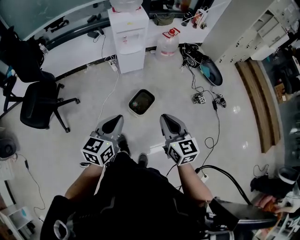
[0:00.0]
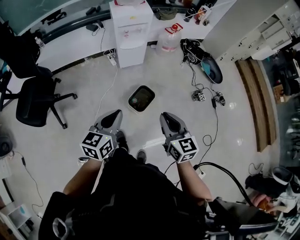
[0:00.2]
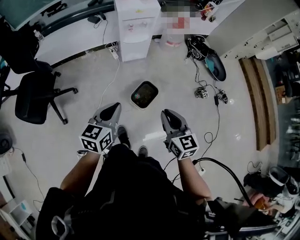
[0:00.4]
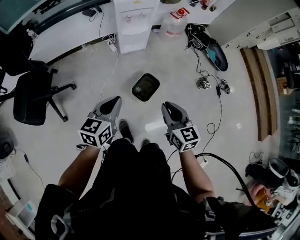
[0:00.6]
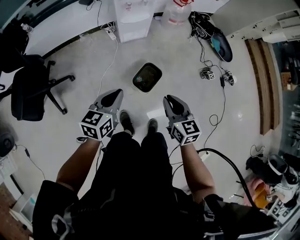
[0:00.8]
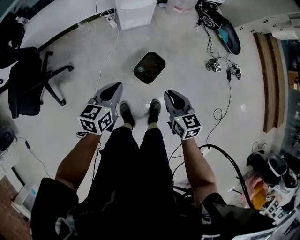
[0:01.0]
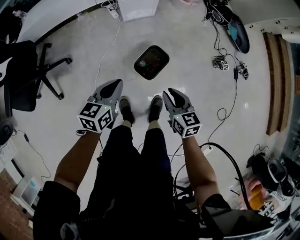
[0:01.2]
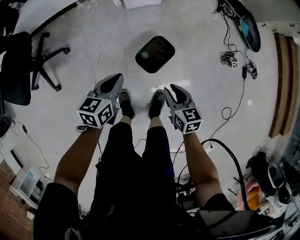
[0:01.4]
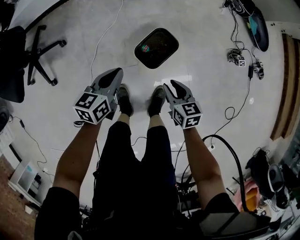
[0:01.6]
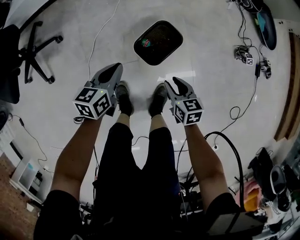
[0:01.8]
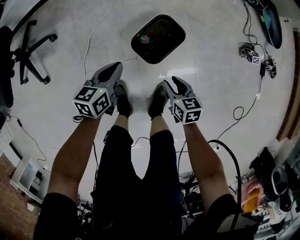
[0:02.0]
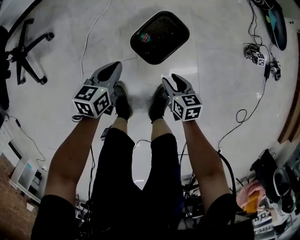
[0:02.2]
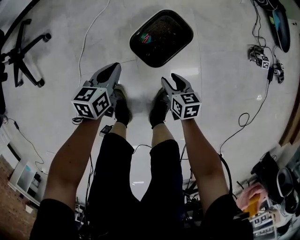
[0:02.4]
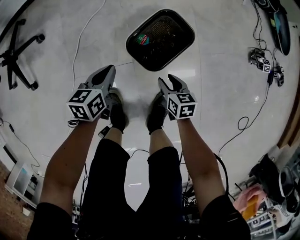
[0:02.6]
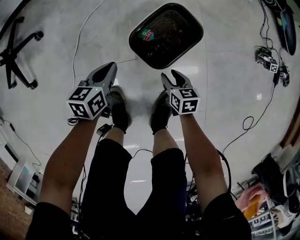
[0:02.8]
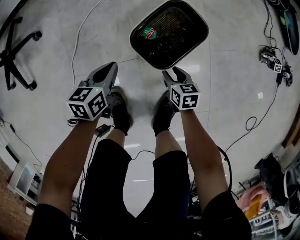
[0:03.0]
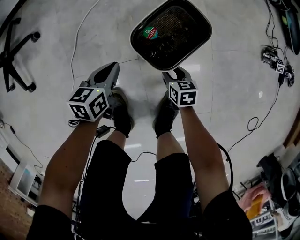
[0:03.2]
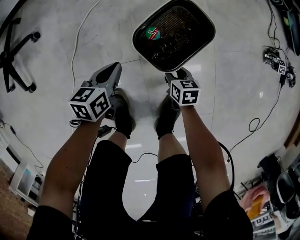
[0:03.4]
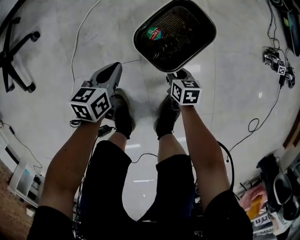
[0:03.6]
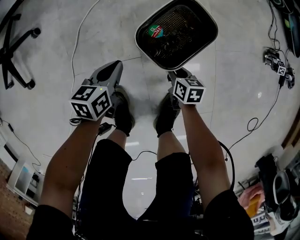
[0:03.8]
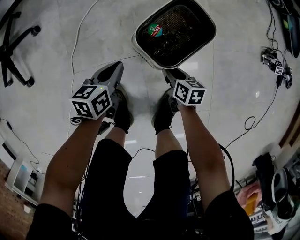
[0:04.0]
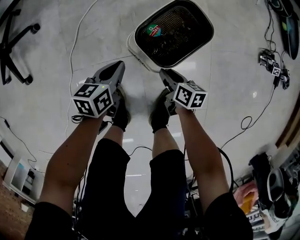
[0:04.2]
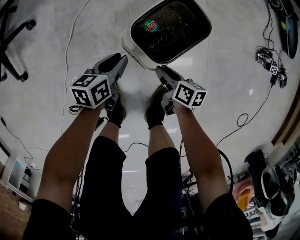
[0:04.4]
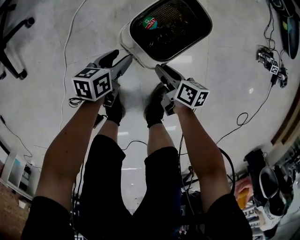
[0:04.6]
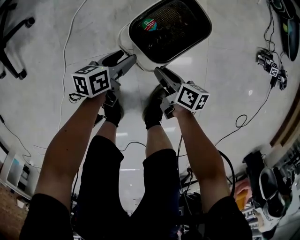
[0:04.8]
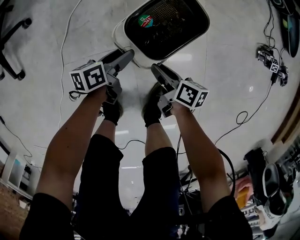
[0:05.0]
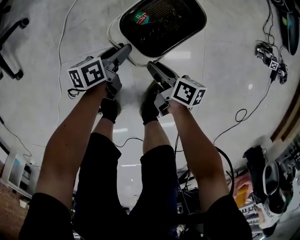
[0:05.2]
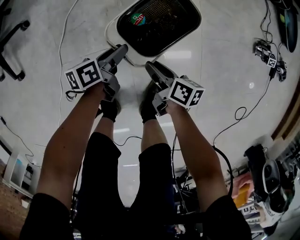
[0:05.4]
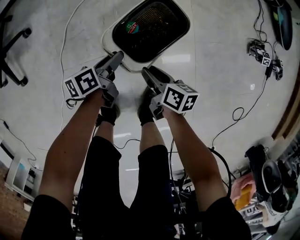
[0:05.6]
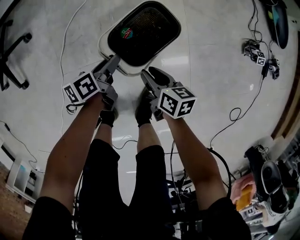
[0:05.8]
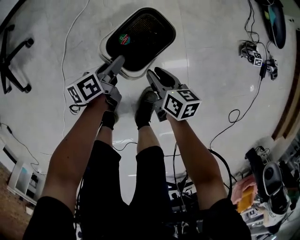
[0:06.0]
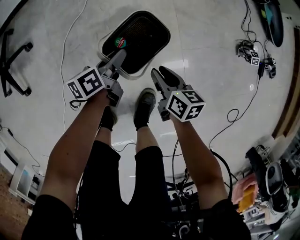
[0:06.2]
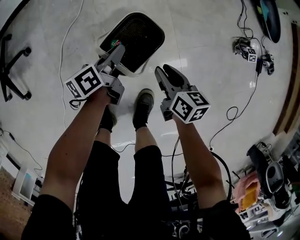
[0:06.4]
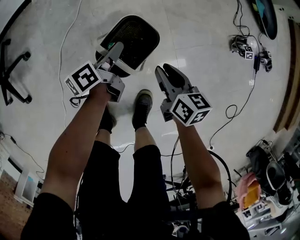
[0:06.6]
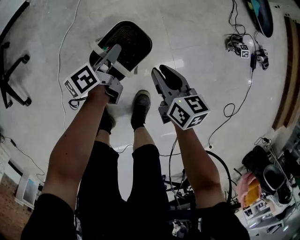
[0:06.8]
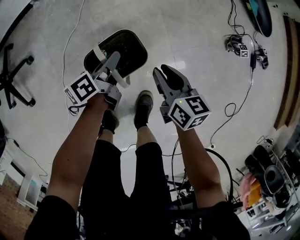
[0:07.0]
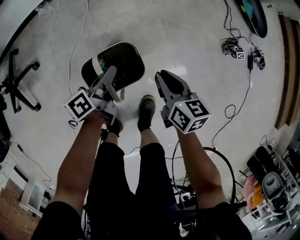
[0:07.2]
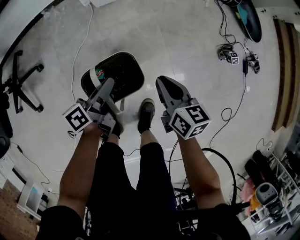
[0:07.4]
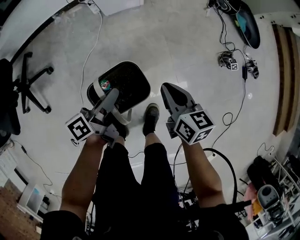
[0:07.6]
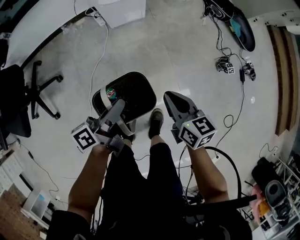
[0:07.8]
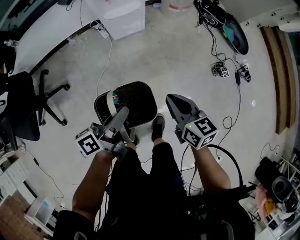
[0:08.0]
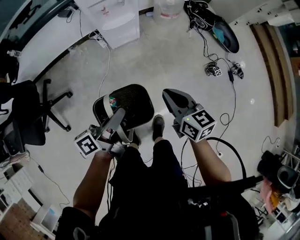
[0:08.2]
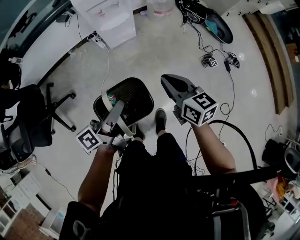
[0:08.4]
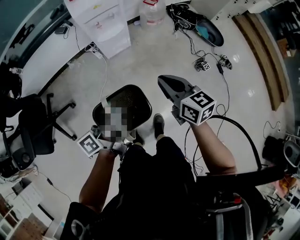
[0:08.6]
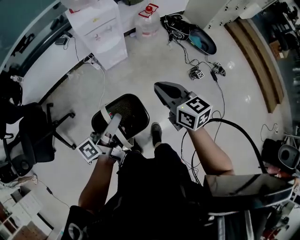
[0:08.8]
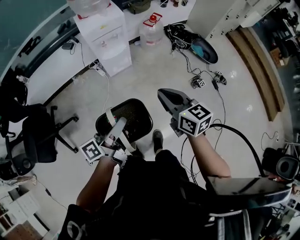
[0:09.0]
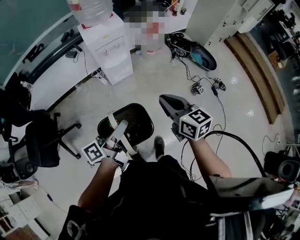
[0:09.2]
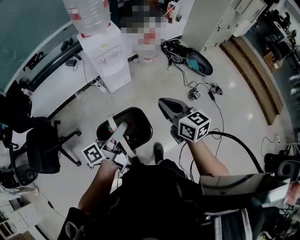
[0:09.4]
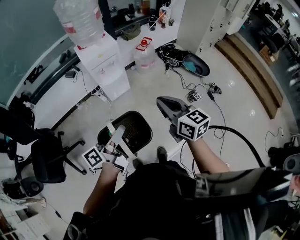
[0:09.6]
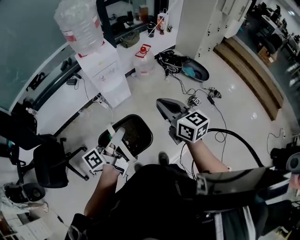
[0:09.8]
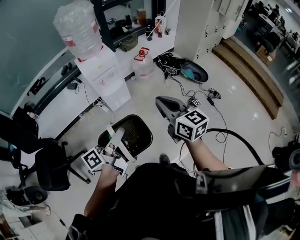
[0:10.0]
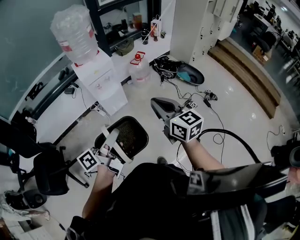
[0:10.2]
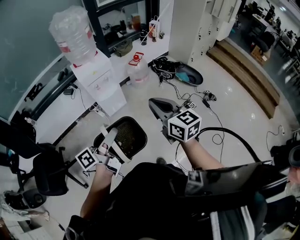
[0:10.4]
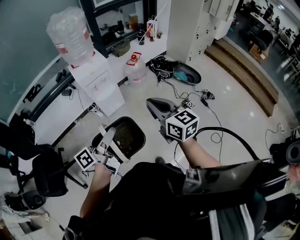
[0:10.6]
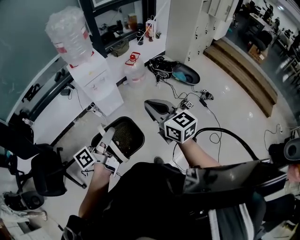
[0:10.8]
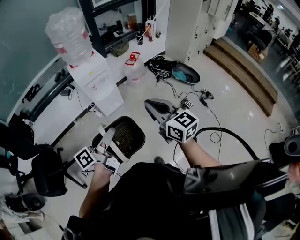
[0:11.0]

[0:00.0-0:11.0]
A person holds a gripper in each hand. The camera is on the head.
0:00.0 to 0:01.6: The left gripper goes approximately 40 cm downward and forward, and rotates about 20 degrees, while the right gripper heads downward, covering approximately 50 cm, and turns by some 30 degrees.
0:01.6 to 0:03.2: The grippers both shift downward by roughly 40 cm.
0:03.2 to 0:04.8: The right gripper is displaced upward by some 10 cm, and changes its angle by roughly 40 degrees. The left gripper changes place by some 5 cm, swivels about 20 degrees, and opens.
0:04.8 to 0:06.2: The left gripper goes approximately 15 cm upward, forward and to the right, and closes up; the right gripper travels upward, to the right and forward by some 15 cm.
0:06.2 to 0:07.8: The two grippers go about 35 cm upward. The right gripper closes its fingers, while the left gripper changes its angle by some 30 degrees, and closes its fingers.
0:07.8 to 0:09.4: The grippers both shift upward by about 35 cm. The right gripper turns by some 20 degrees.
0:09.4 to 0:11.0: The right gripper goes about 10 cm upward; the left gripper changes place by about 5 cm.

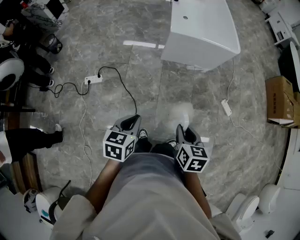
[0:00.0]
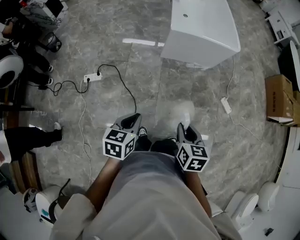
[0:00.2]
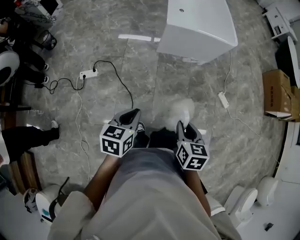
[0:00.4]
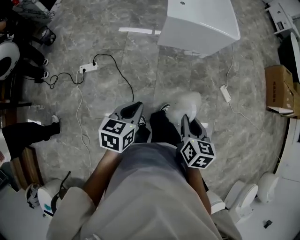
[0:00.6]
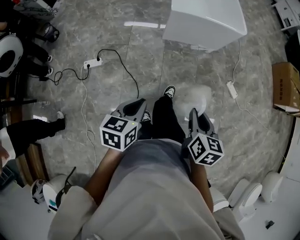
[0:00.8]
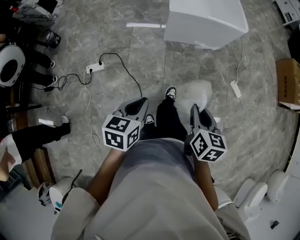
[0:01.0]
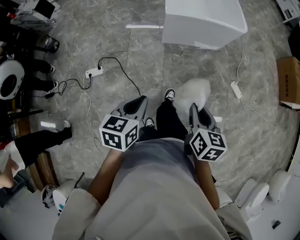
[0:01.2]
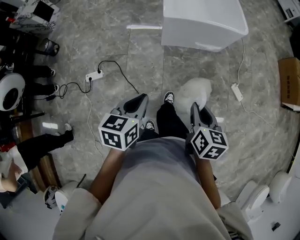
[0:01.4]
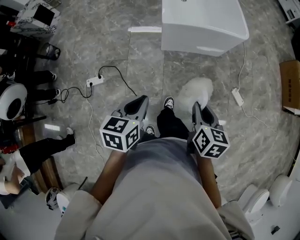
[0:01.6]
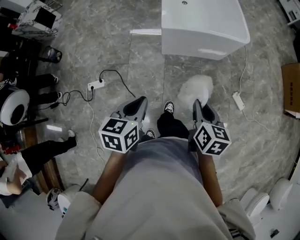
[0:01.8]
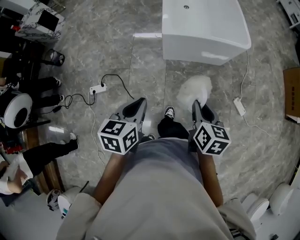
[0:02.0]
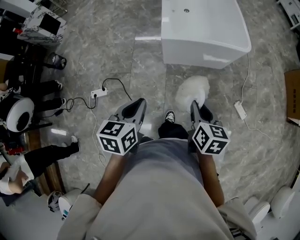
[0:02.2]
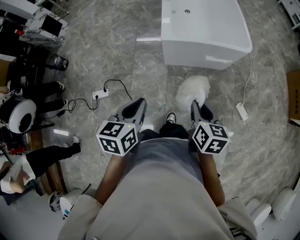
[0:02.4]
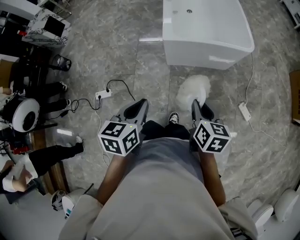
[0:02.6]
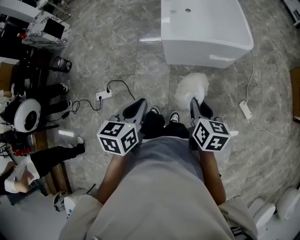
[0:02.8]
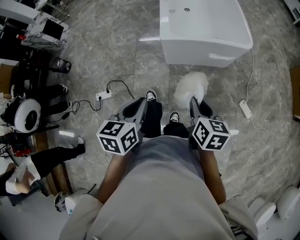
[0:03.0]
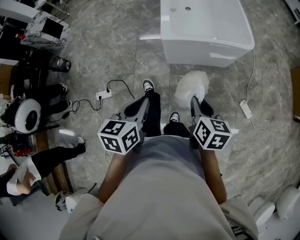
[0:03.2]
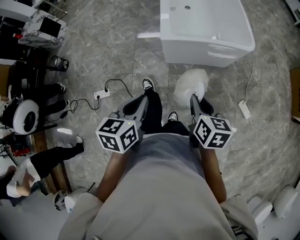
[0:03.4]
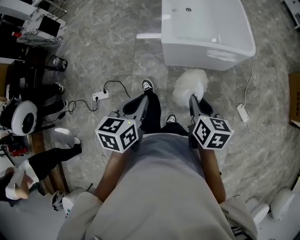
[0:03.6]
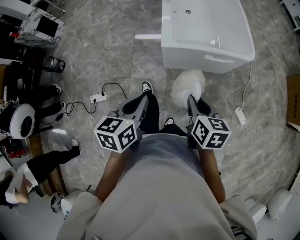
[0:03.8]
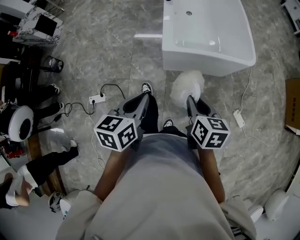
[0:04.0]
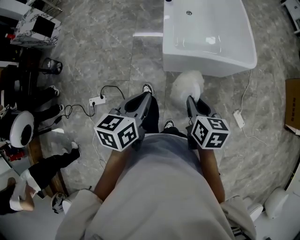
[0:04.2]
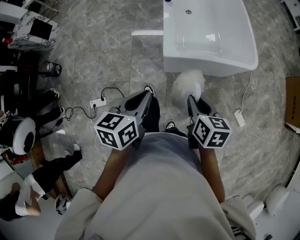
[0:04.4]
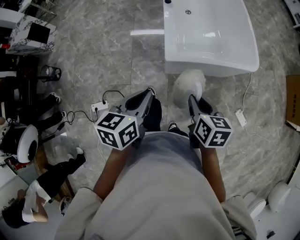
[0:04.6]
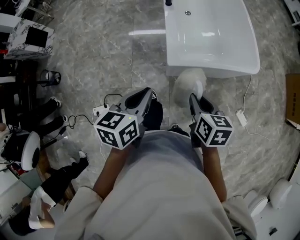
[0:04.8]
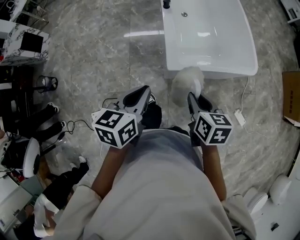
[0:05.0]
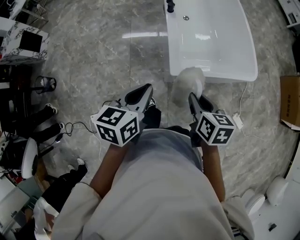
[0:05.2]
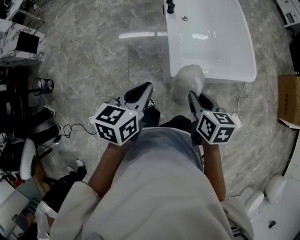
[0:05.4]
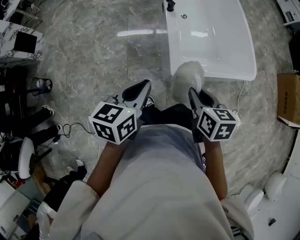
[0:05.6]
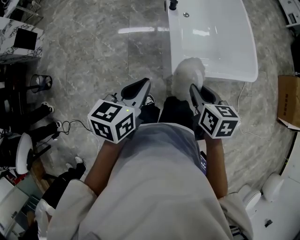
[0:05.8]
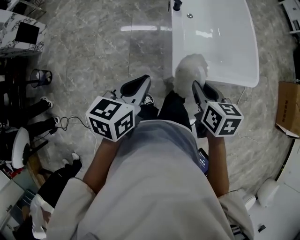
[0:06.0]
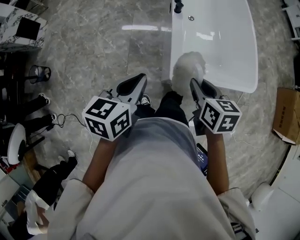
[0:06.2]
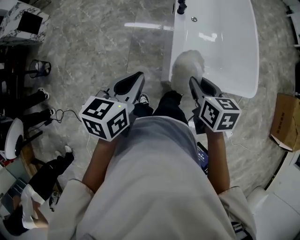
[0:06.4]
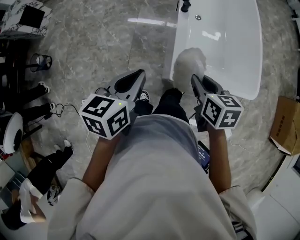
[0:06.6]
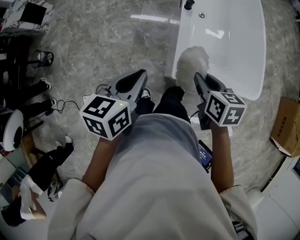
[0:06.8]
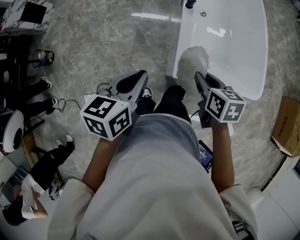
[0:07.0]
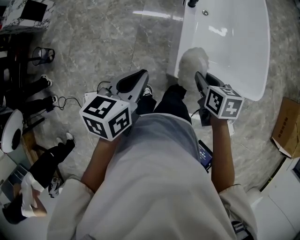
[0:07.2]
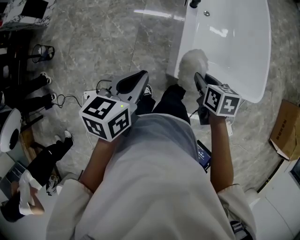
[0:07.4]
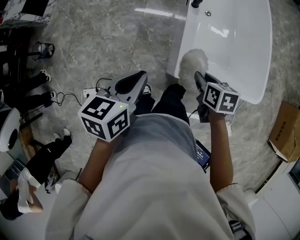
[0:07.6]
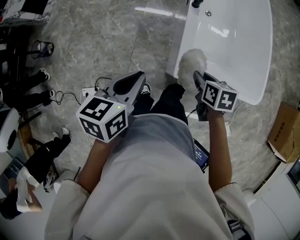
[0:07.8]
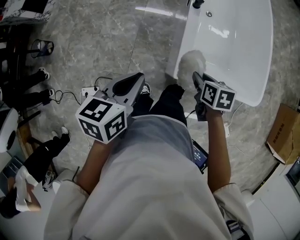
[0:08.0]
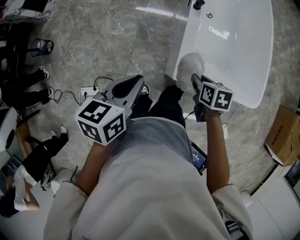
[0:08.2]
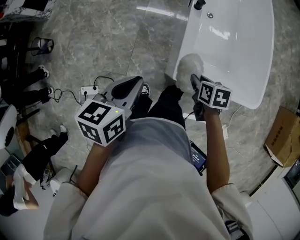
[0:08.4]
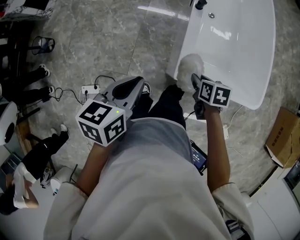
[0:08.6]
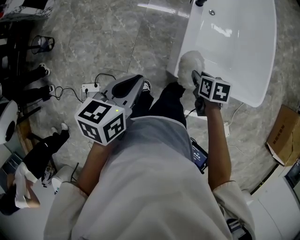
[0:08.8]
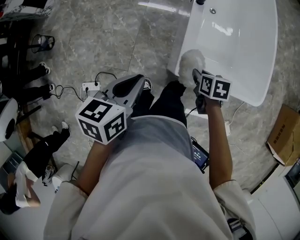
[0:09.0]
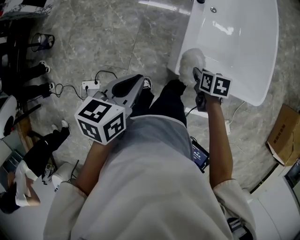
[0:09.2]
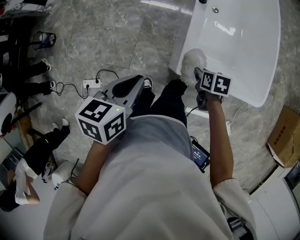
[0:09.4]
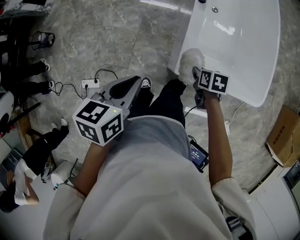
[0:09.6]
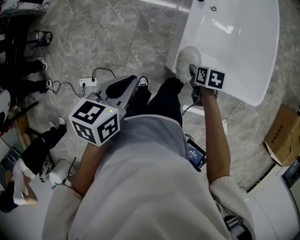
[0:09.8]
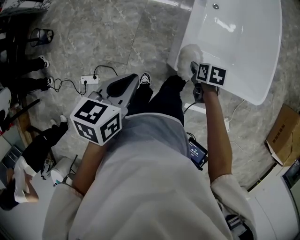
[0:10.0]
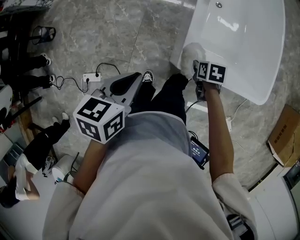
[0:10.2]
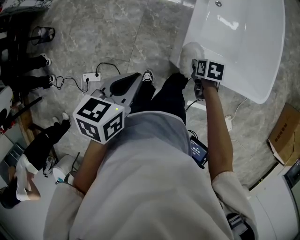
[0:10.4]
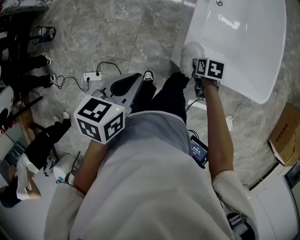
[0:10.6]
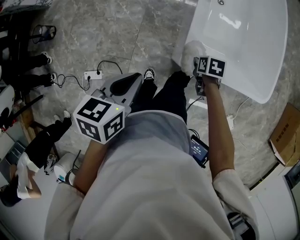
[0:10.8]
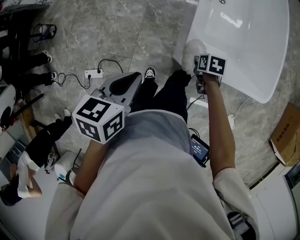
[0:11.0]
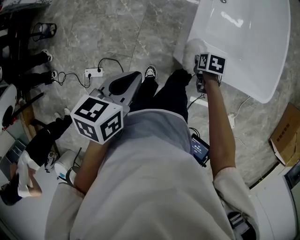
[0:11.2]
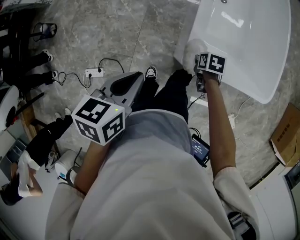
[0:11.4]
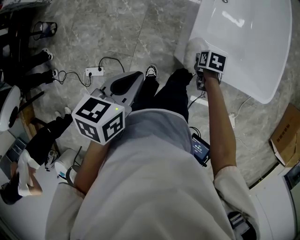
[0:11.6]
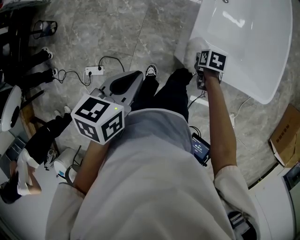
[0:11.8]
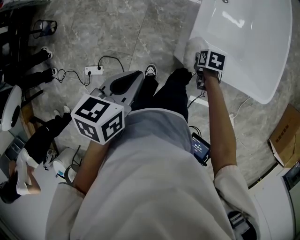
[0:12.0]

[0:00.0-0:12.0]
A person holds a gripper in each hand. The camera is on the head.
0:00.0 to 0:01.6: The grippers both shift forward by some 20 cm.
0:01.6 to 0:03.0: The two grippers go approximately 10 cm forward.
0:03.0 to 0:04.4: The right gripper moves forward and to the left, some 20 cm, while the left gripper moves forward, some 20 cm.
0:04.4 to 0:06.0: The grippers both shift forward and to the left by about 20 cm.
0:06.0 to 0:07.6: The right gripper goes some 15 cm downward and forward.
0:07.6 to 0:09.0: The right gripper moves downward, about 5 cm.
0:09.0 to 0:10.4: The right gripper goes about 10 cm downward.
0:10.4 to 0:12.0: The grippers make only small movements.

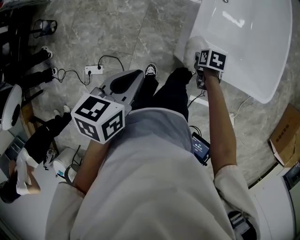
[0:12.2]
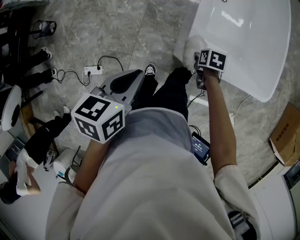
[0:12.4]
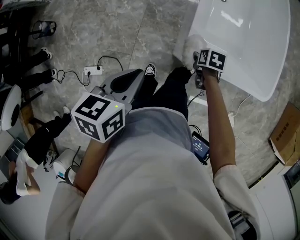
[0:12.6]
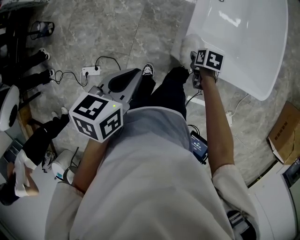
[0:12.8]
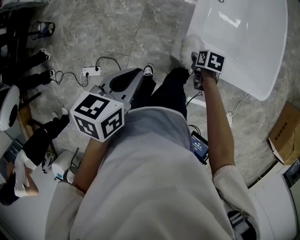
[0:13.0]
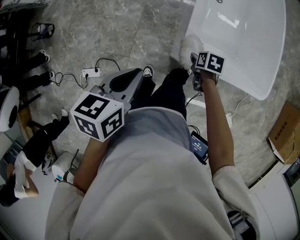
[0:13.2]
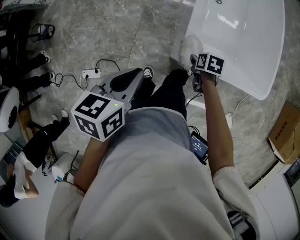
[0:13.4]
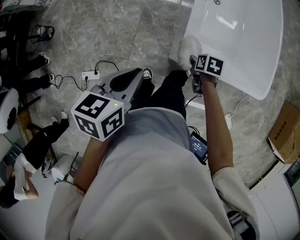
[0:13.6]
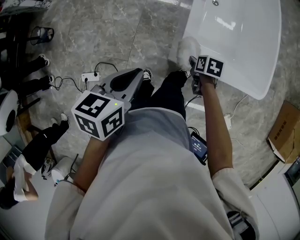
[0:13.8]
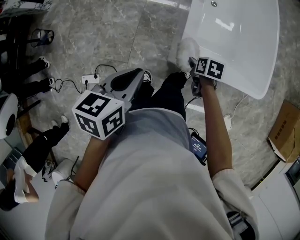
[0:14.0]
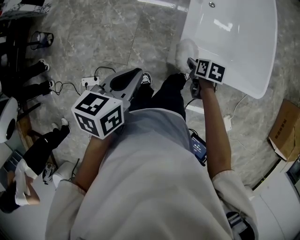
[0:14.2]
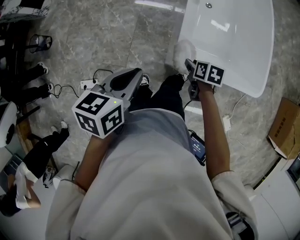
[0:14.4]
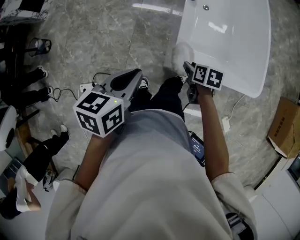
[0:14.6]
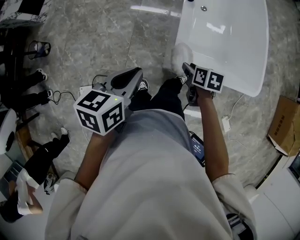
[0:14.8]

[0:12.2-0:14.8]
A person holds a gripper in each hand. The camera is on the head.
0:12.2 to 0:13.4: The grippers move only a little.
0:13.4 to 0:14.8: The right gripper travels upward by roughly 10 cm.
